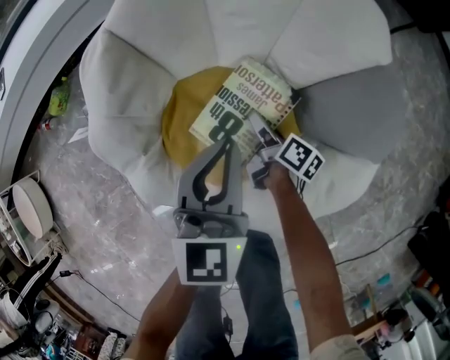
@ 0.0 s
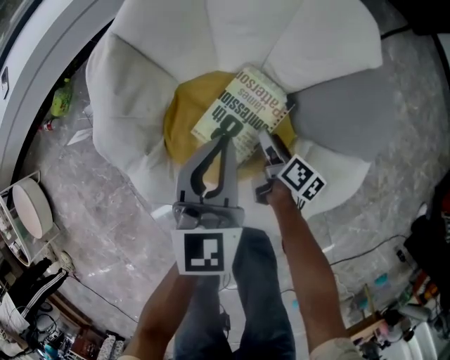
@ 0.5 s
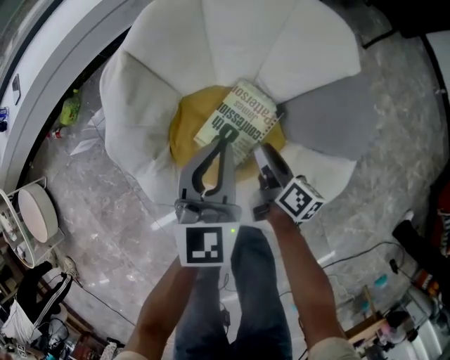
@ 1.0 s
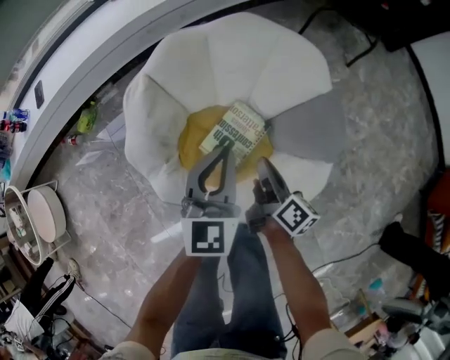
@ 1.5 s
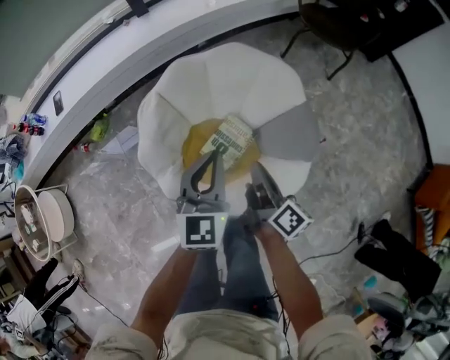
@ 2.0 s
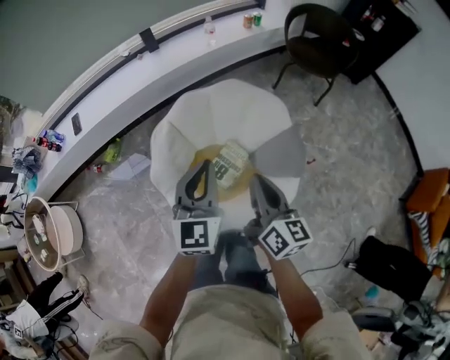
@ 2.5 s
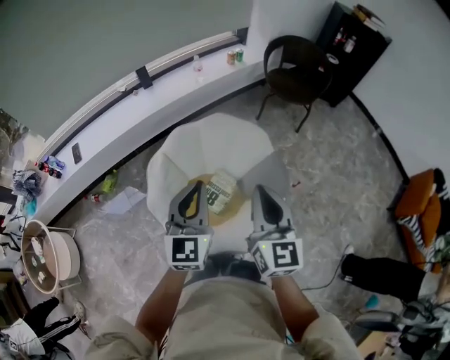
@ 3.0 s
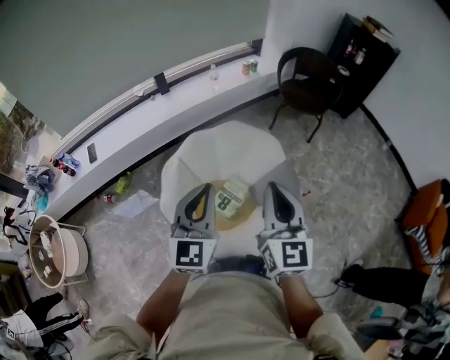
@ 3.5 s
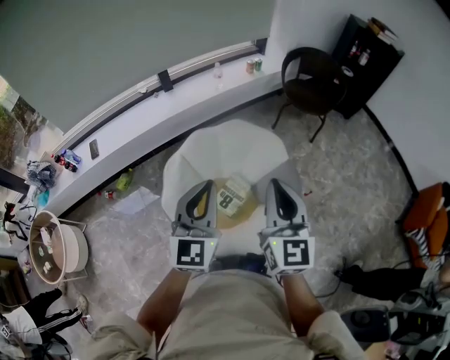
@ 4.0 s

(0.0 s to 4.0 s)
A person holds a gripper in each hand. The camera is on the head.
0.0 s - 2.0 s: The right gripper is displaced upward by roughly 50 cm, swivels about 20 degrees, and closes up, while the left gripper heads upward, covering roughly 30 cm.
2.0 s - 4.0 s: The two grippers go approximately 30 cm upward. The right gripper twists some 60 degrees counterclockwise, seen from behind.

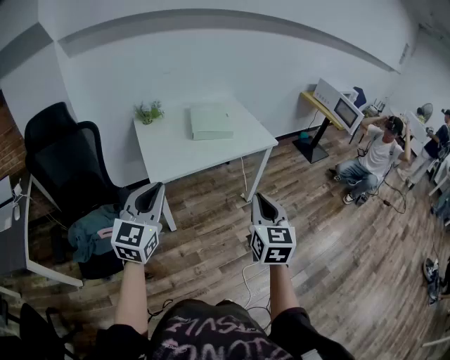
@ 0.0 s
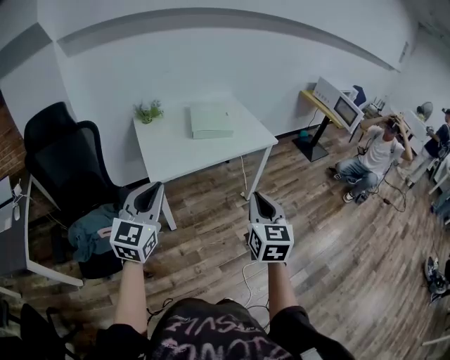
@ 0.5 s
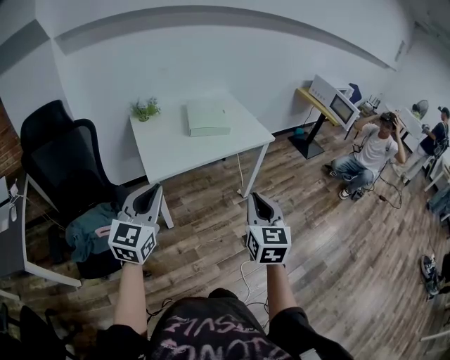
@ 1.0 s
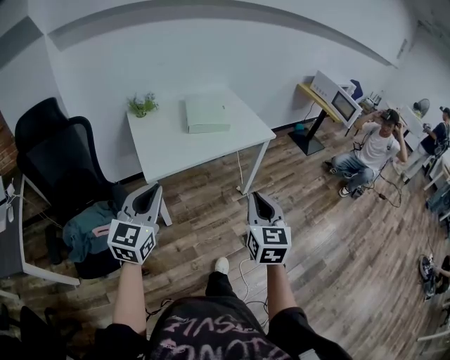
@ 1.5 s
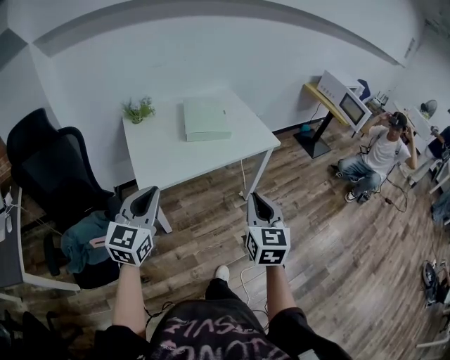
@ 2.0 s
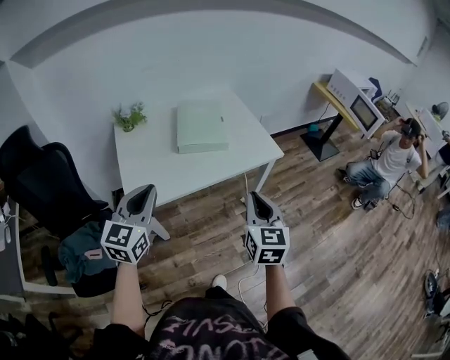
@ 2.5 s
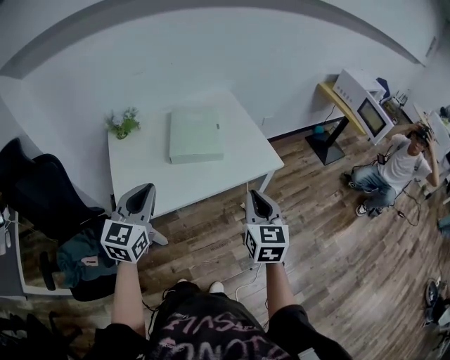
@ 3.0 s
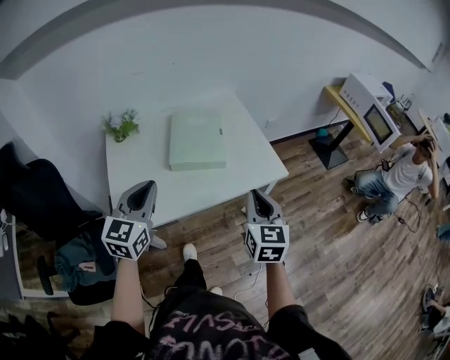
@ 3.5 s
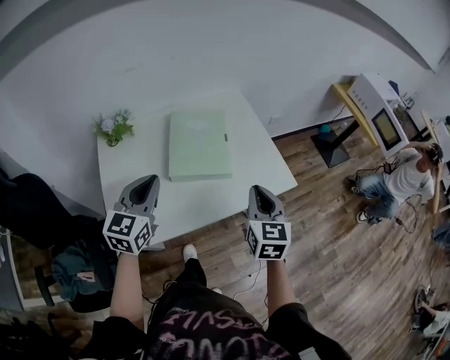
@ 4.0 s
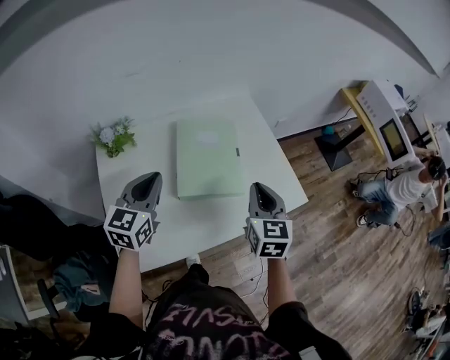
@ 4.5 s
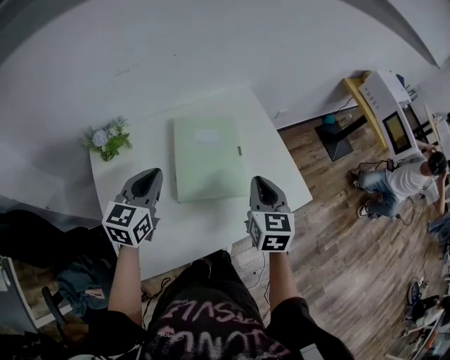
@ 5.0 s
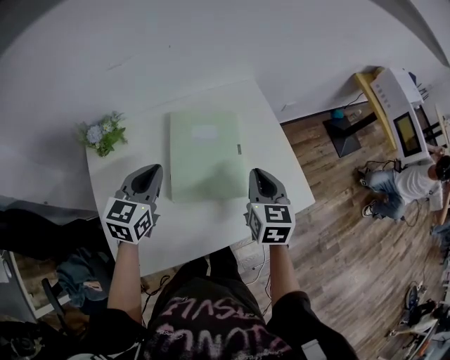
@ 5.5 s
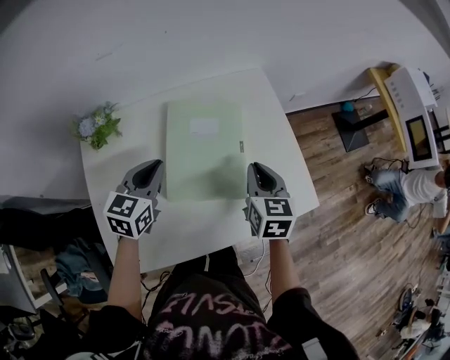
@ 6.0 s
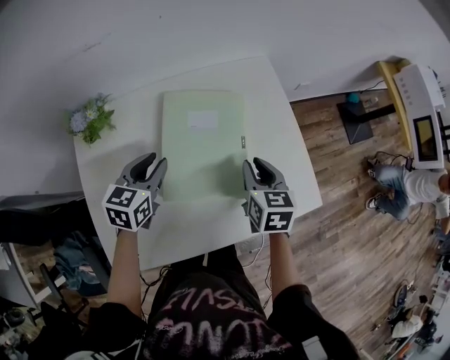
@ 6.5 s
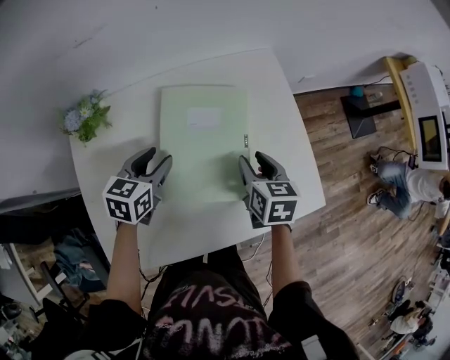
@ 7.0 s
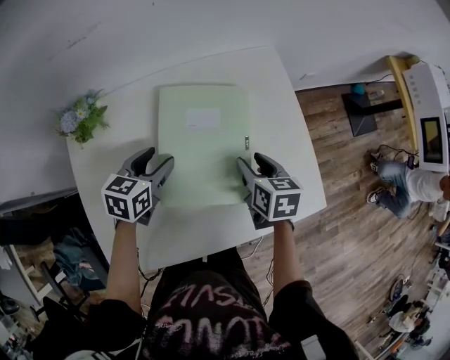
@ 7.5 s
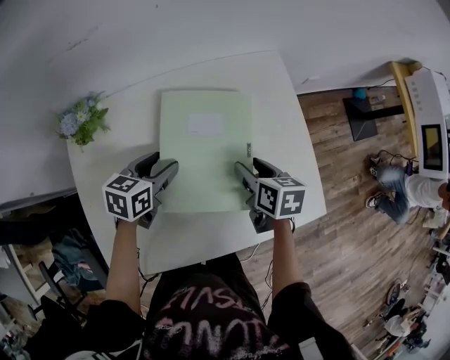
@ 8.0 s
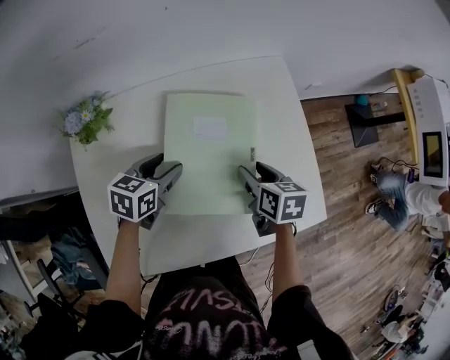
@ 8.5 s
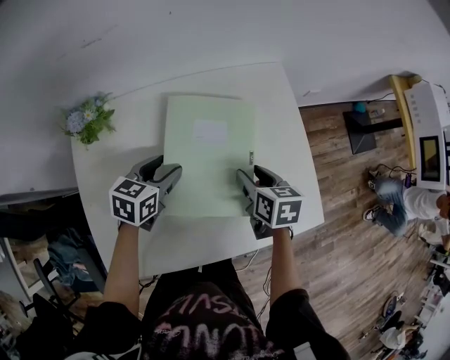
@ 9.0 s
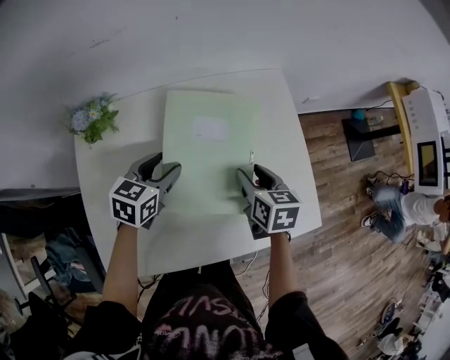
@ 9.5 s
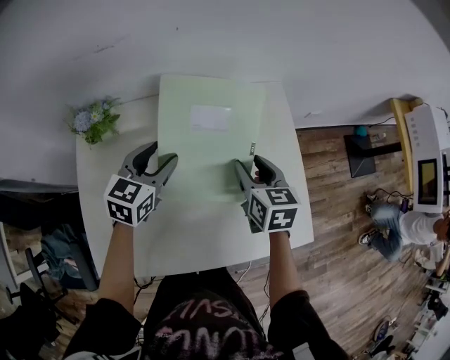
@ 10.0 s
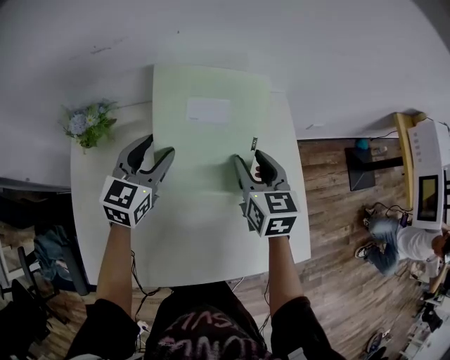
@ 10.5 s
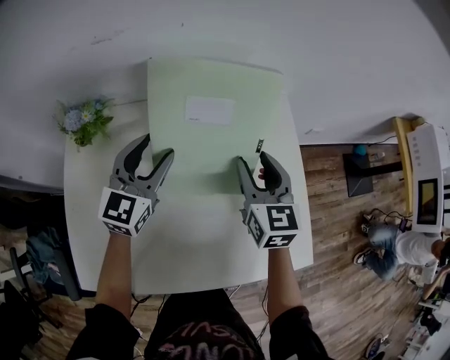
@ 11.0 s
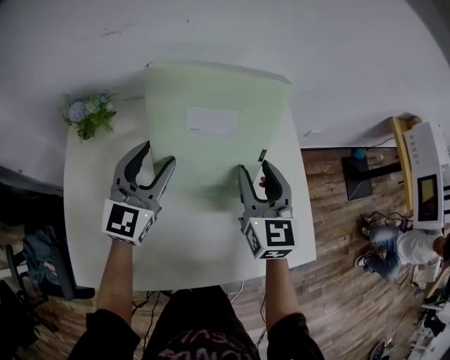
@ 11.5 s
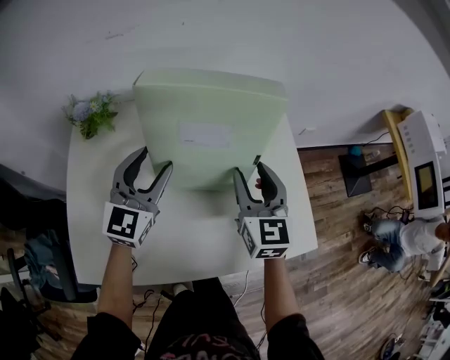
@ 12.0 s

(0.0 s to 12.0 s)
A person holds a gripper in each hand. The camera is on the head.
0.0 s - 2.0 s: Both grippers travel together forward, about 10 cm.
2.0 s - 4.0 s: The two grippers go roughly 35 cm forward.
4.0 s - 6.0 s: Both grippers travel together forward and downward, some 20 cm.
6.0 s - 8.0 s: The grippers both shift downward by about 10 cm. The right gripper turns by about 30 degrees, and opens up. Meanwhile the left gripper turns by about 20 degrees, and opens up.
8.0 s - 10.0 s: The left gripper shifts some 10 cm upward, and changes its angle by approximately 20 degrees; the right gripper shifts about 10 cm upward and forward, and turns by some 20 degrees.
10.0 s - 12.0 s: Both grippers travel together backward, about 5 cm. The right gripper turns by approximately 30 degrees. The left gripper swivels some 30 degrees.

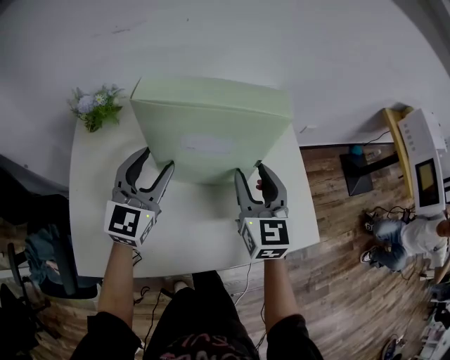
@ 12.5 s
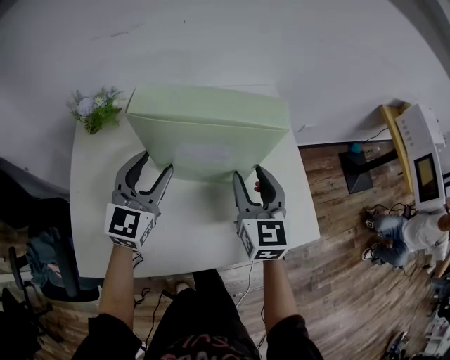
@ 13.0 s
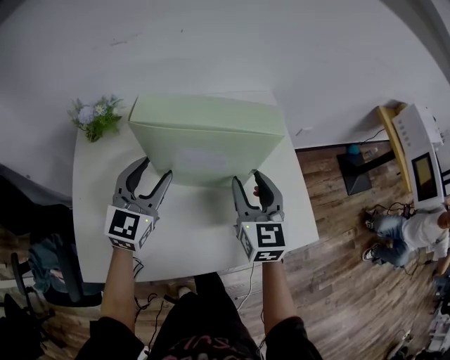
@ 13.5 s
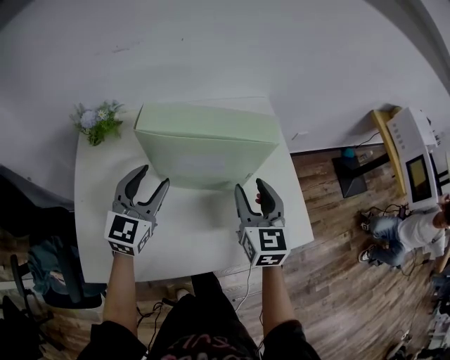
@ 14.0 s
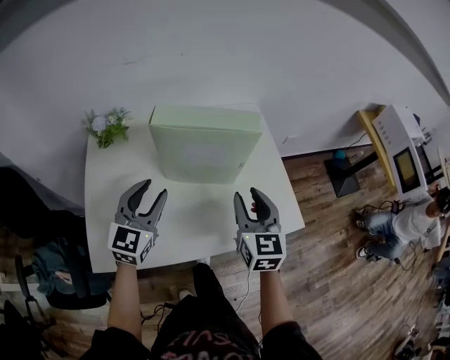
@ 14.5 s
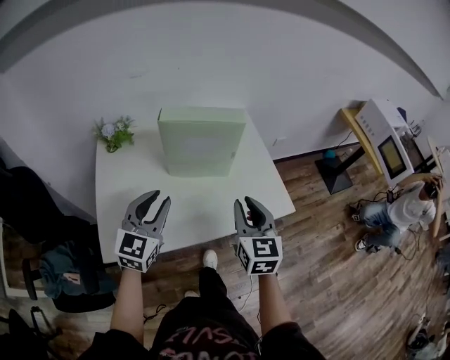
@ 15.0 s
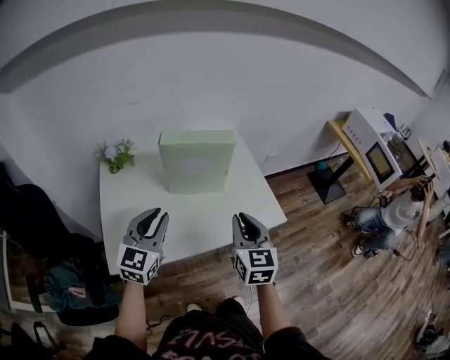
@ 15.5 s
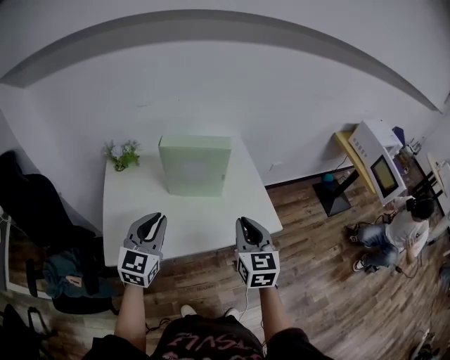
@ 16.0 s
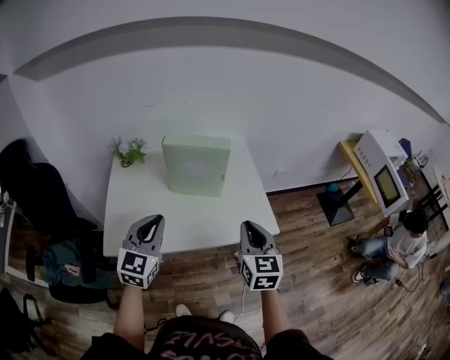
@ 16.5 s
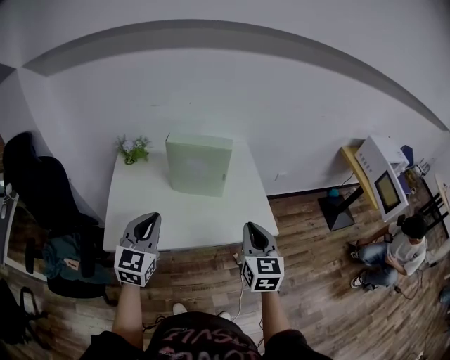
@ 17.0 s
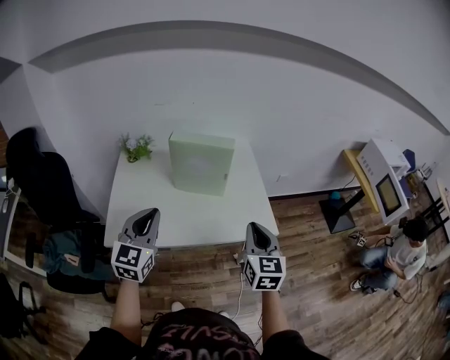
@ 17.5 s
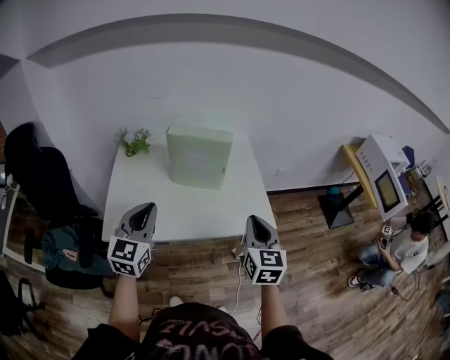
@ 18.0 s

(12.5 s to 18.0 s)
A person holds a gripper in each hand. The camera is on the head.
12.5 s - 14.5 s: Both grippers move backward, some 10 cm.
14.5 s - 16.0 s: The grippers both shift backward and upward by roughly 15 cm. The left gripper closes, while the right gripper closes up.
16.0 s - 18.0 s: The right gripper travels to the right by some 5 cm, while the left gripper goes roughly 5 cm backward.

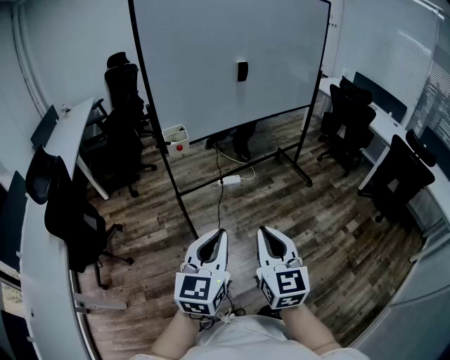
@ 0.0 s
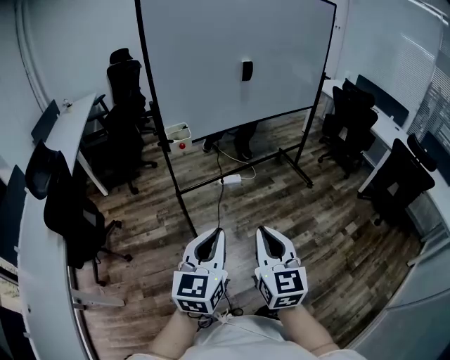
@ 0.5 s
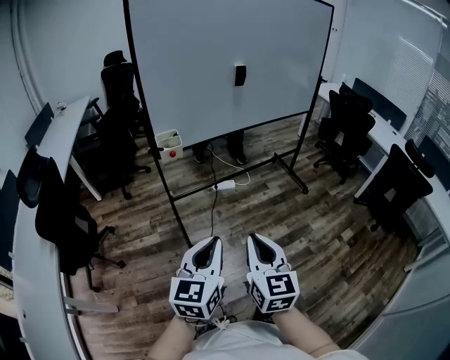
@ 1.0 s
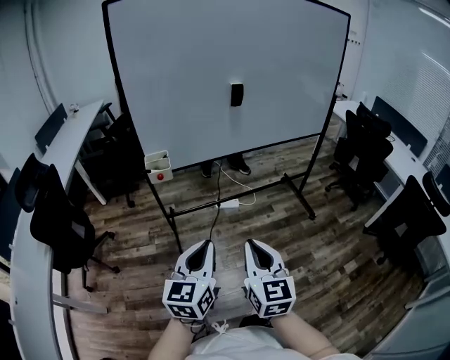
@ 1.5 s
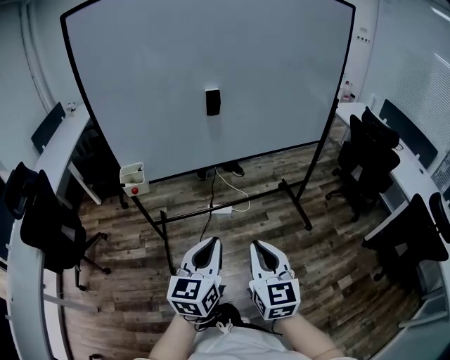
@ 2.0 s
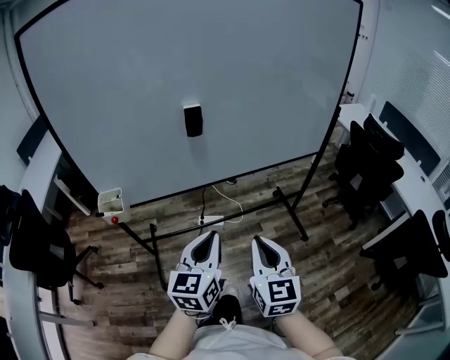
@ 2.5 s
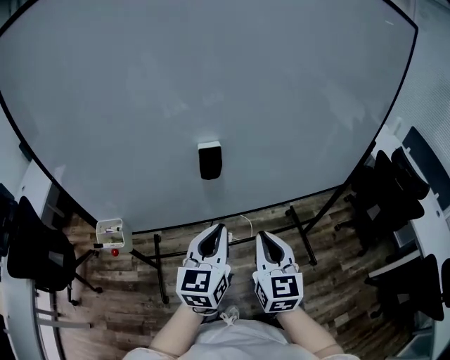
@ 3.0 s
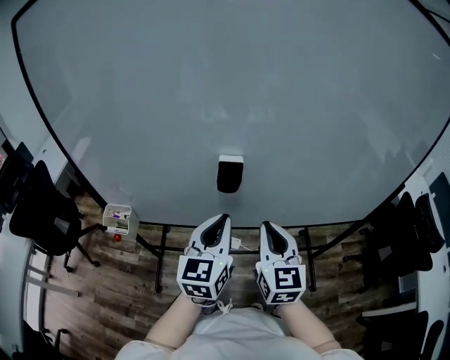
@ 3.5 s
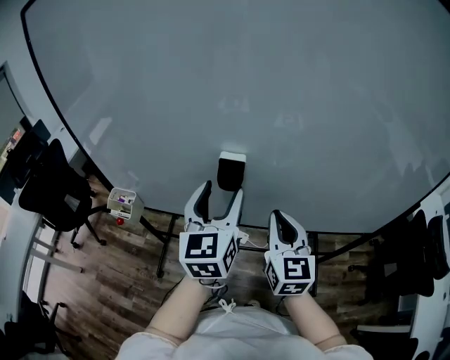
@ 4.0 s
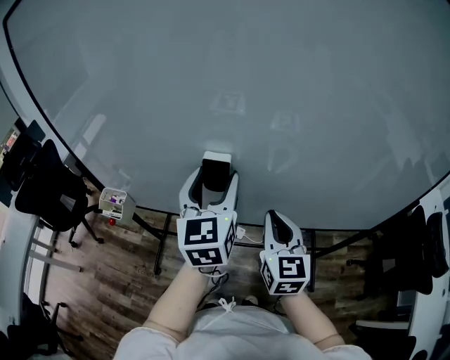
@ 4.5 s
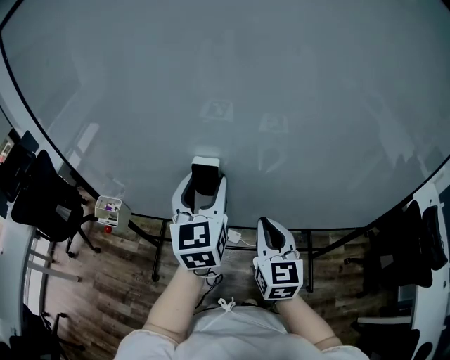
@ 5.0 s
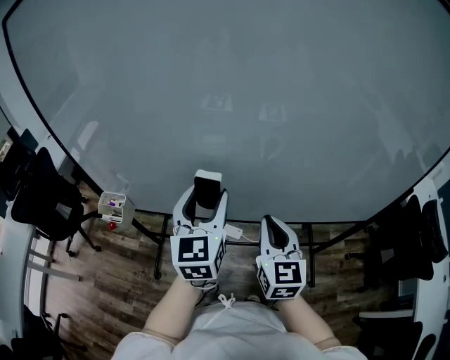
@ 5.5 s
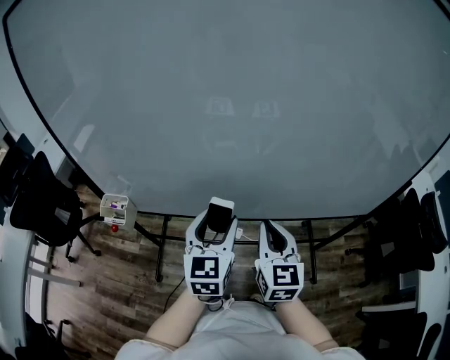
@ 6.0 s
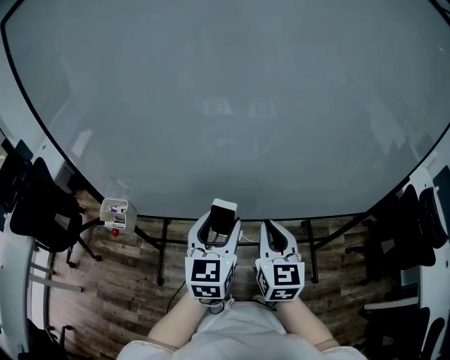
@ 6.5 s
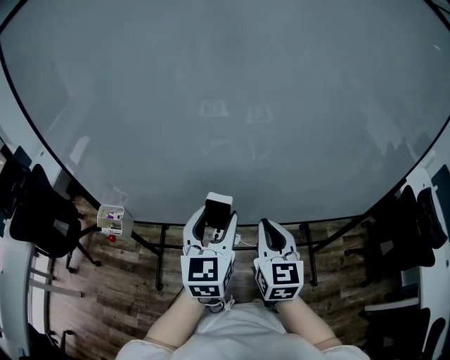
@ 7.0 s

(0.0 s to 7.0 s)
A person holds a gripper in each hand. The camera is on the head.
0.0 s - 2.0 s: Both grippers travel together forward and to the right, some 35 cm.
2.0 s - 3.5 s: Both grippers travel together forward, some 40 cm.
3.5 s - 5.0 s: The right gripper changes place by roughly 5 cm. Meanwhile the left gripper shifts approximately 10 cm forward and upward, and opens up.
5.0 s - 7.0 s: The left gripper is displaced backward and downward by some 10 cm.
